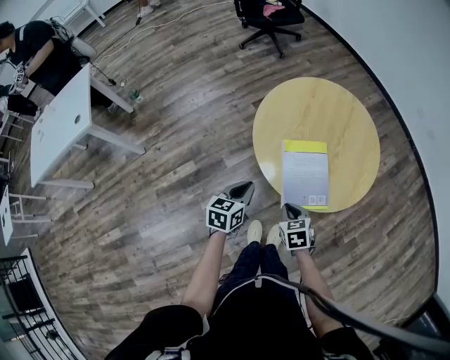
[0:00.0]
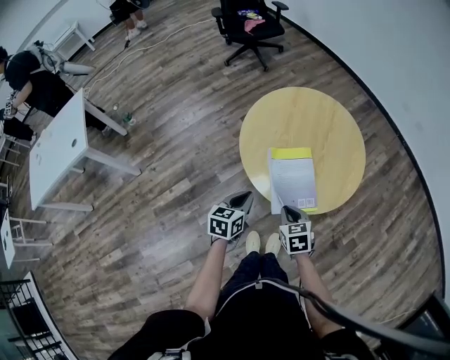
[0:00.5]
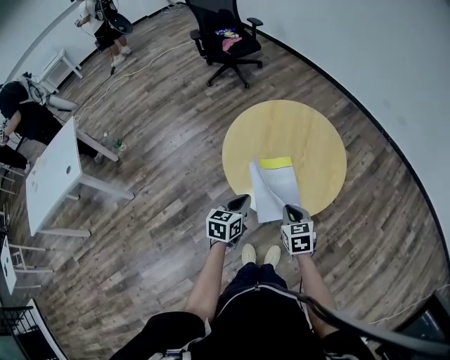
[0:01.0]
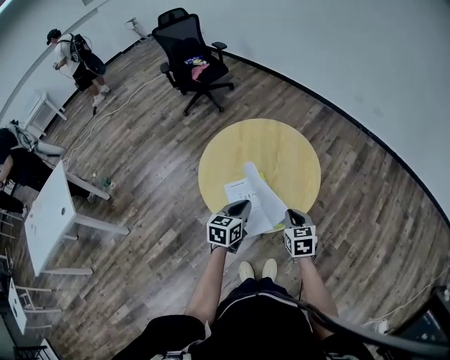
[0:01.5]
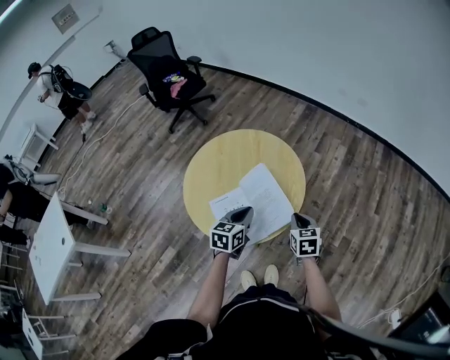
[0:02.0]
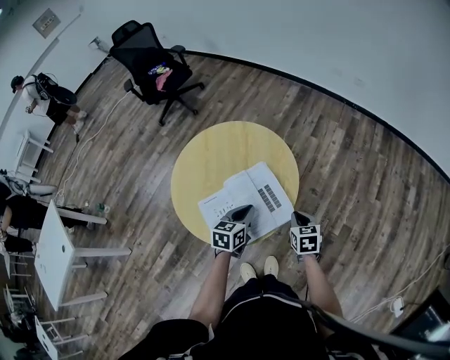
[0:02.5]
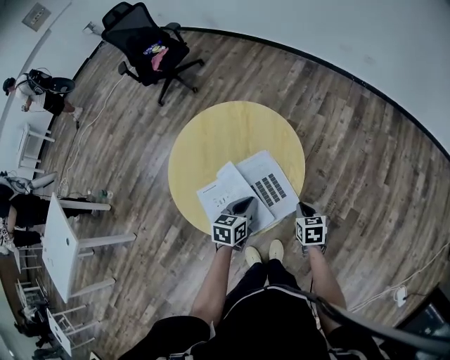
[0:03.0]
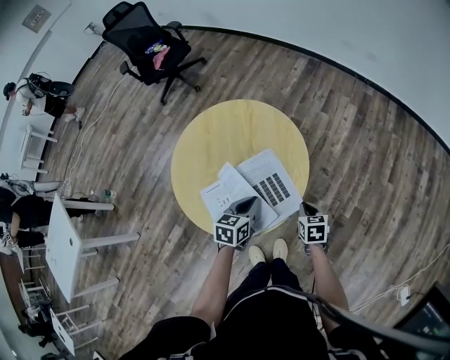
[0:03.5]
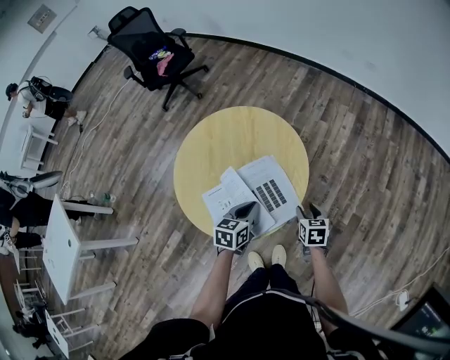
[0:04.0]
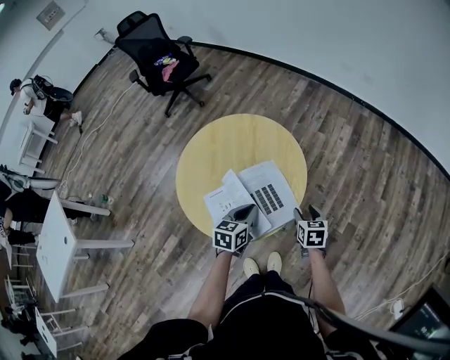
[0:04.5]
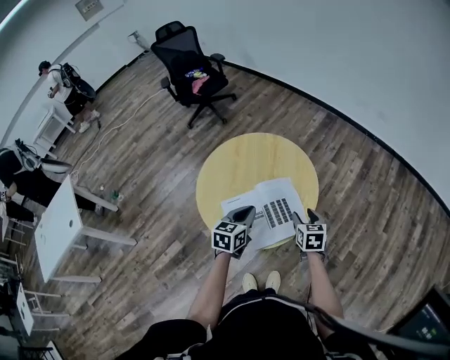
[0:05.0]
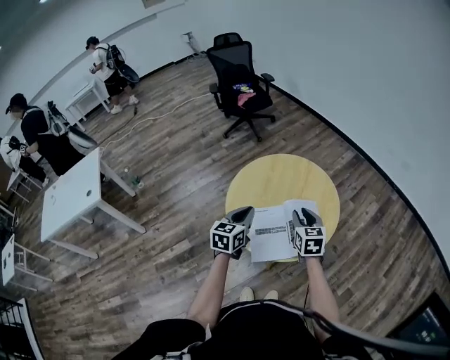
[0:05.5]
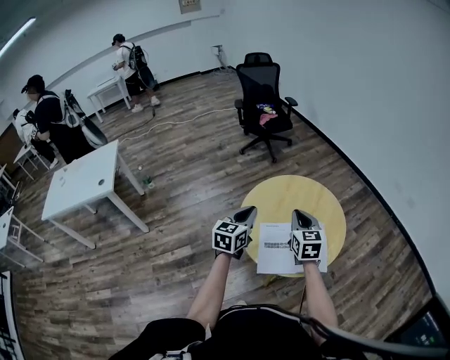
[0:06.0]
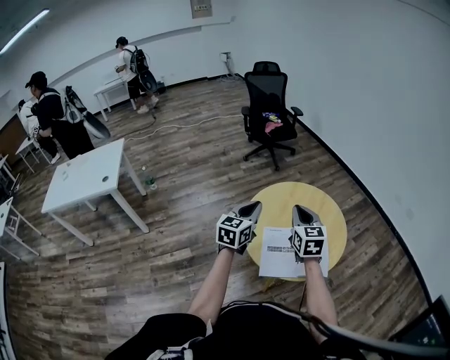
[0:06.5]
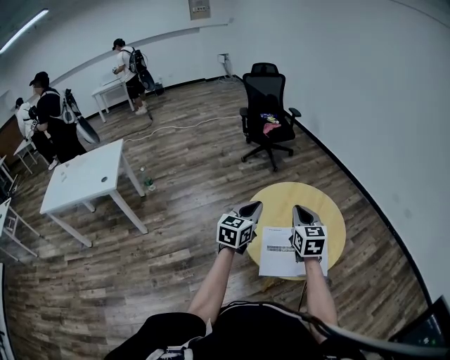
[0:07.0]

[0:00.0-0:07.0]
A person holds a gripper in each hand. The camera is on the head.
0:00.0 to 0:02.0: The right gripper ends up about 30 cm from where it was, and swivels approximately 40 degrees, while the left gripper moves about 25 cm, and swivels approximately 30 degrees.
0:02.0 to 0:03.5: The right gripper goes roughly 10 cm downward, while the left gripper shifts approximately 10 cm downward.
0:03.5 to 0:05.0: The grippers both shift upward and to the left by approximately 10 cm. The right gripper opens its fingers.
0:05.0 to 0:07.0: The left gripper heads to the left and upward, covering some 25 cm, and rotates some 30 degrees. Meanwhile the right gripper heads upward and to the left, covering some 35 cm, changes its angle by about 40 degrees, and closes its fingers.

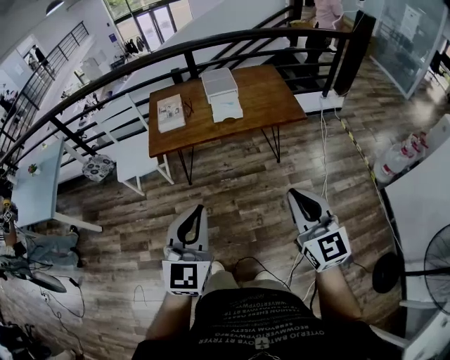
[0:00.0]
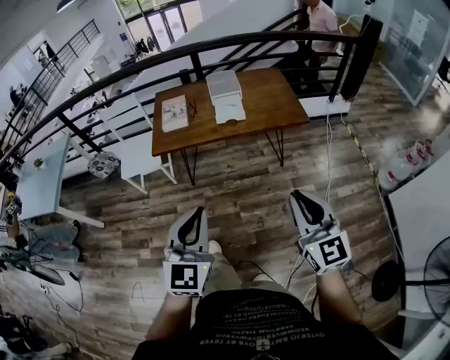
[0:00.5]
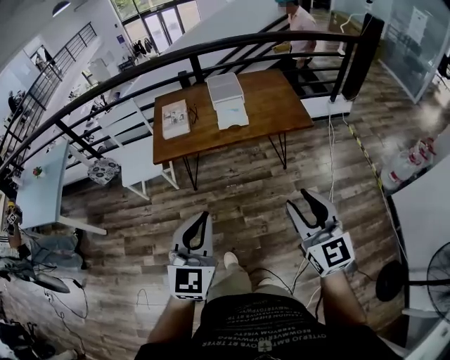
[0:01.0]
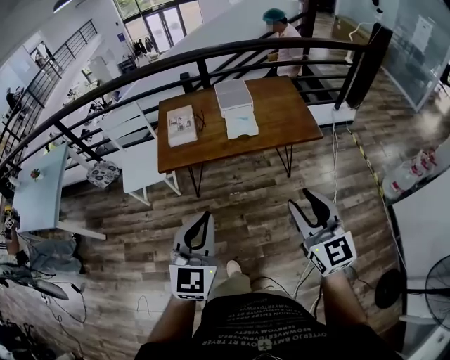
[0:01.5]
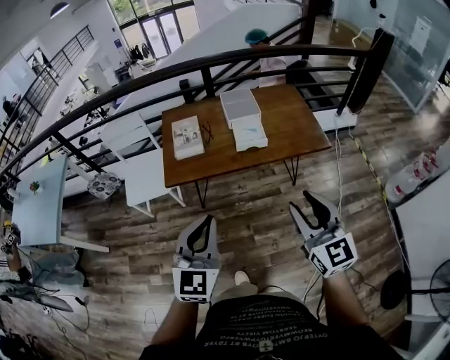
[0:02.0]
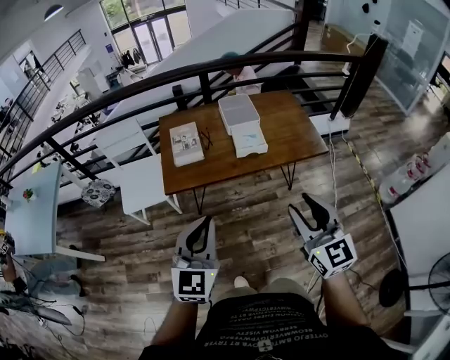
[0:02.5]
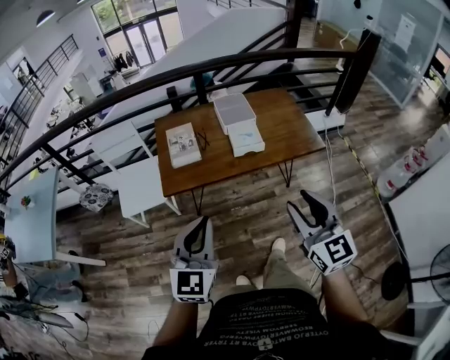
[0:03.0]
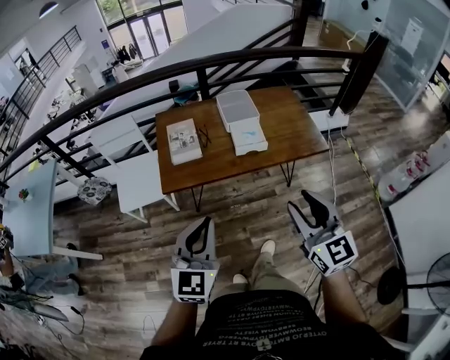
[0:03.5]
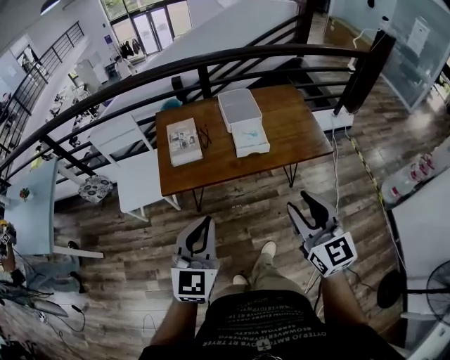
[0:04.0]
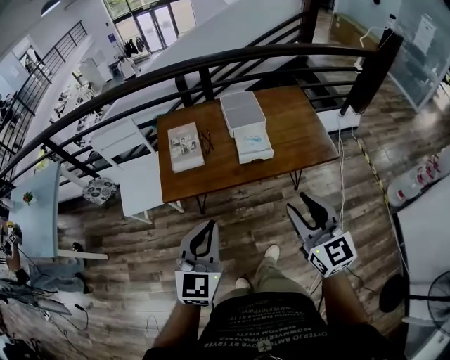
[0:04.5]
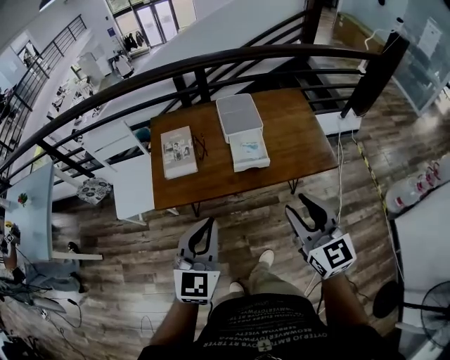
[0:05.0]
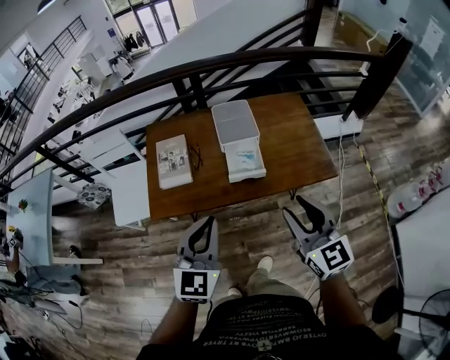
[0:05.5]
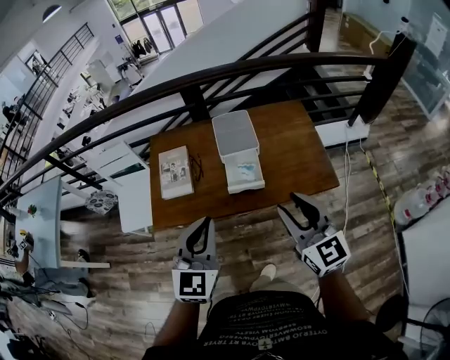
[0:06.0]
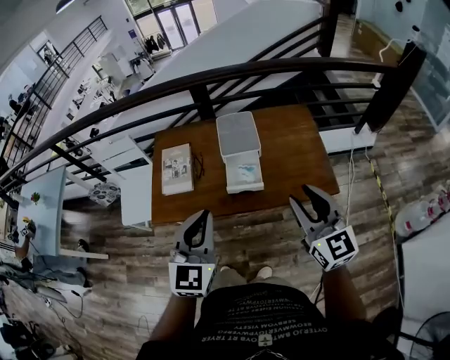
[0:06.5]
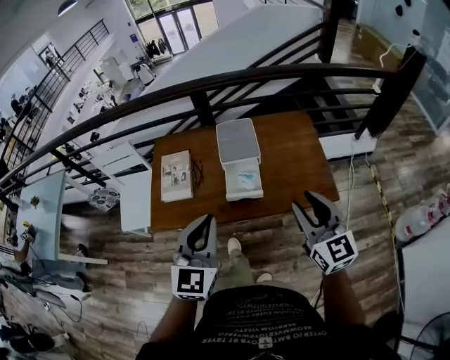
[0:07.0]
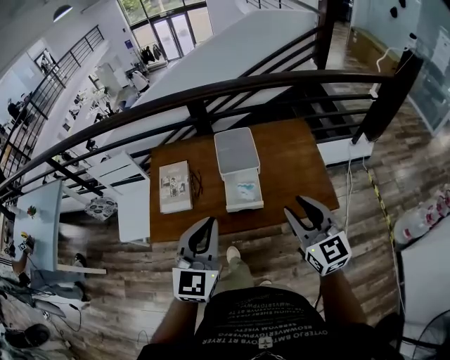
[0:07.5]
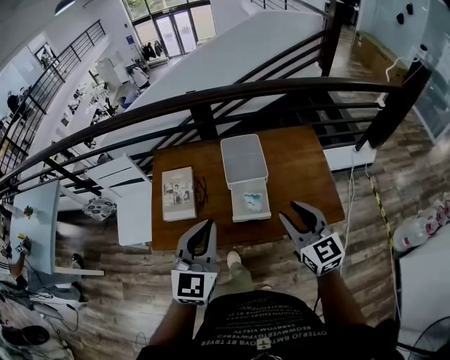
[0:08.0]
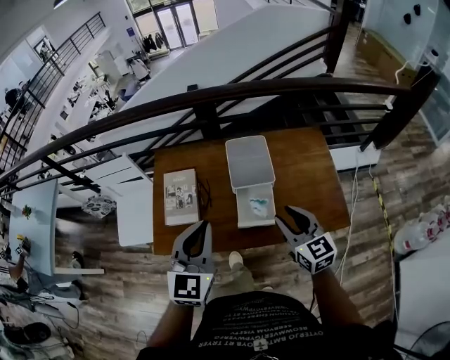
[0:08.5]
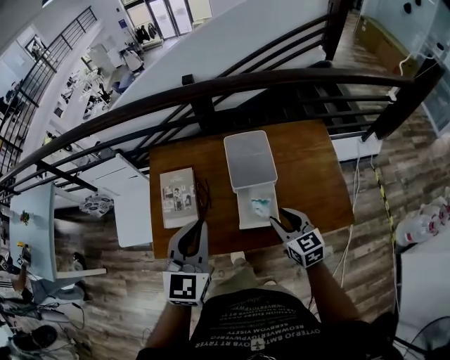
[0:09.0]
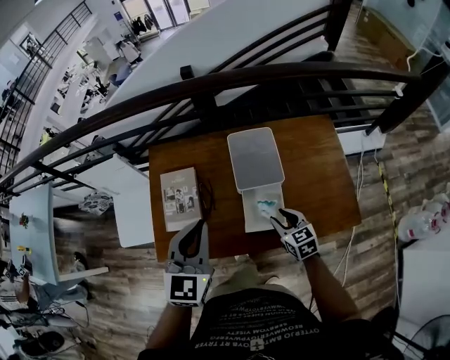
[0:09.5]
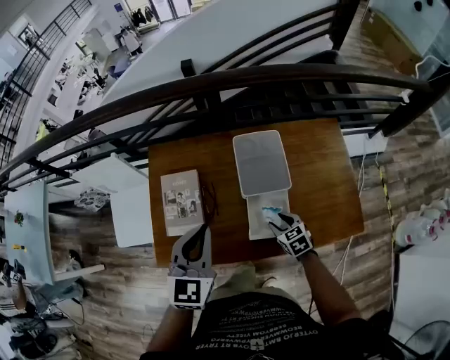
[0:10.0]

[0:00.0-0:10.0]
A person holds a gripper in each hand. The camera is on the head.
0:00.0 to 0:02.0: The grippers both shift forward and to the left by about 20 cm. The right gripper opens up.
0:02.0 to 0:04.0: The two grippers go roughly 5 cm forward.
0:04.0 to 0:06.0: Both grippers move forward and to the right, some 25 cm.
0:06.0 to 0:08.0: Both grippers move forward, approximately 10 cm.
0:08.0 to 0:10.0: The left gripper is displaced forward and downward by approximately 20 cm, while the right gripper heads downward and forward, covering some 35 cm, and tips its fingers downward by some 40 degrees.

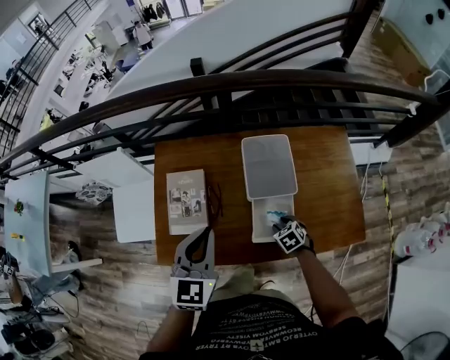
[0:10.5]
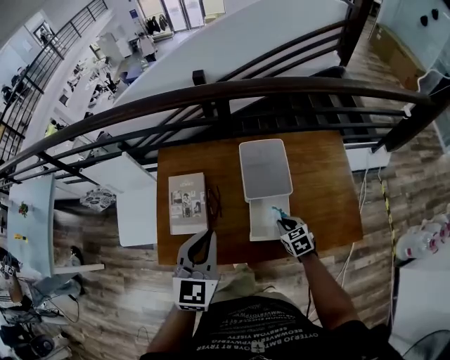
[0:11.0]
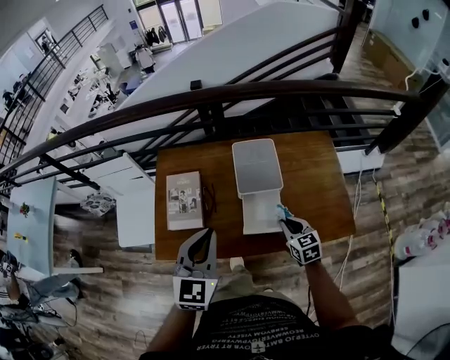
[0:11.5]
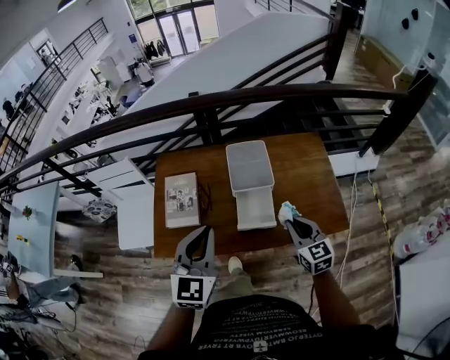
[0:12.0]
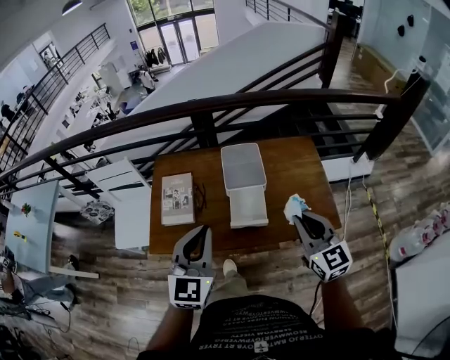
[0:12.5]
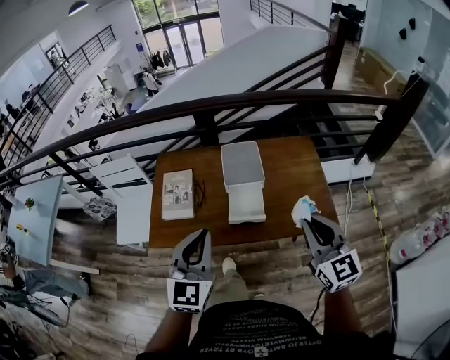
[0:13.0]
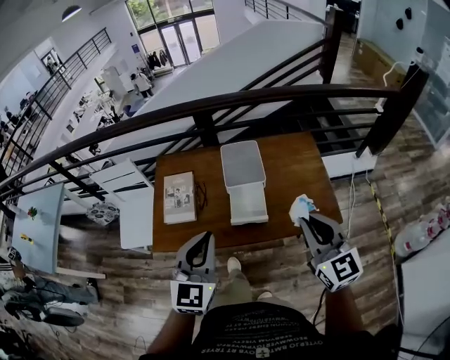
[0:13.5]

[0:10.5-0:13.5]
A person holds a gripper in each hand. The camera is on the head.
0:10.5 to 0:12.0: The left gripper travels backward and upward by approximately 20 cm. The right gripper shifts some 30 cm upward and backward, tilts its fingers approximately 40 degrees upward, and closes its fingers.
0:12.0 to 0:13.5: The right gripper goes about 20 cm upward and backward, while the left gripper travels backward by about 10 cm.

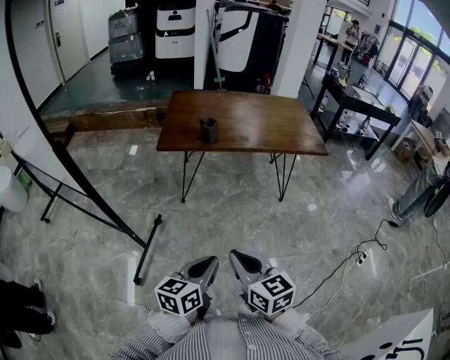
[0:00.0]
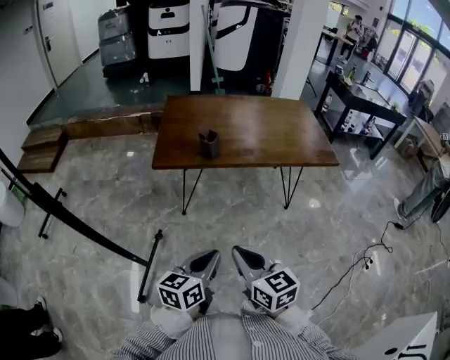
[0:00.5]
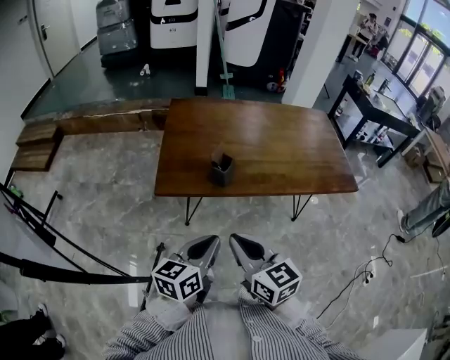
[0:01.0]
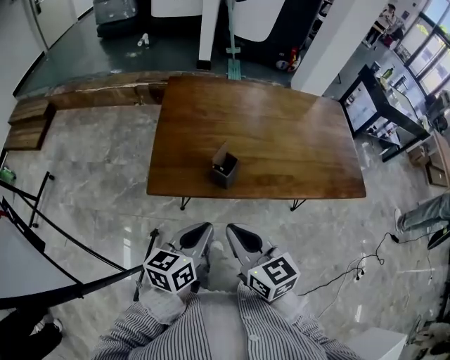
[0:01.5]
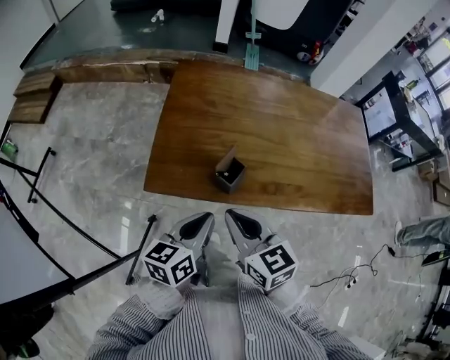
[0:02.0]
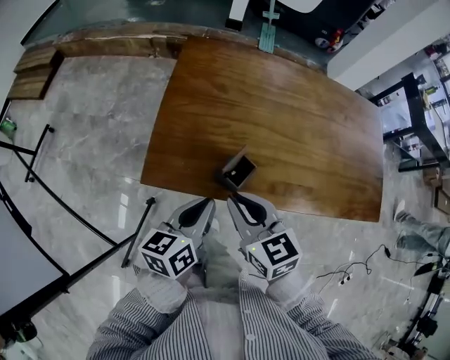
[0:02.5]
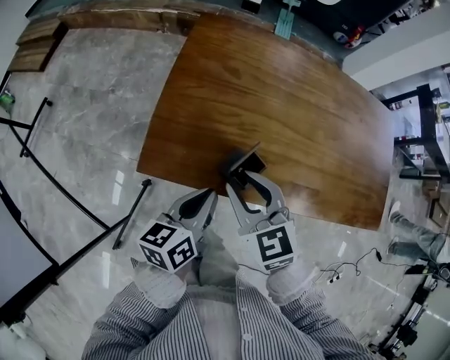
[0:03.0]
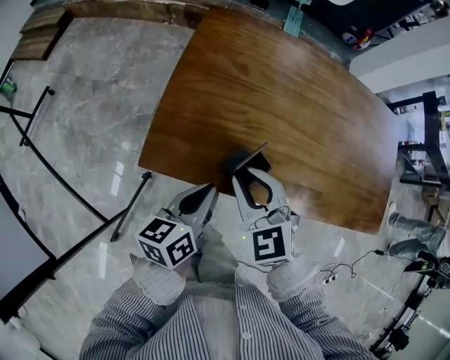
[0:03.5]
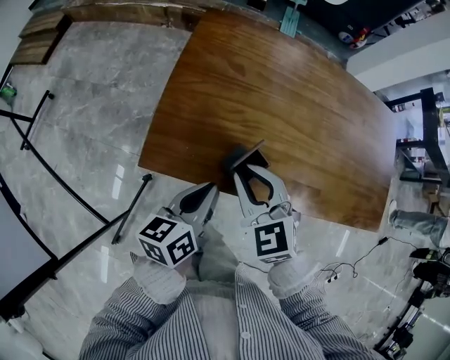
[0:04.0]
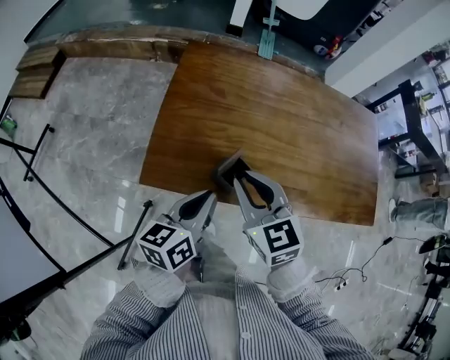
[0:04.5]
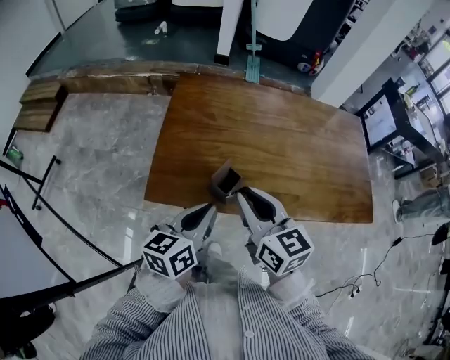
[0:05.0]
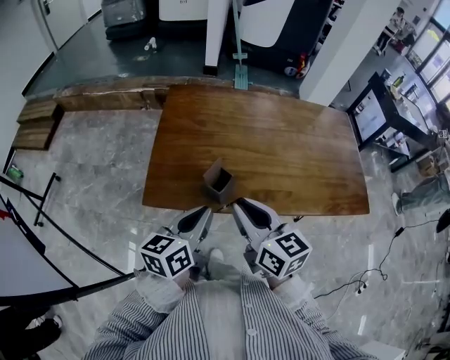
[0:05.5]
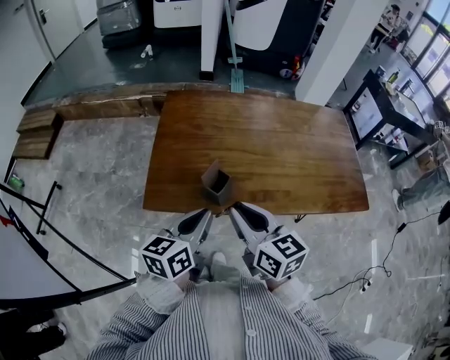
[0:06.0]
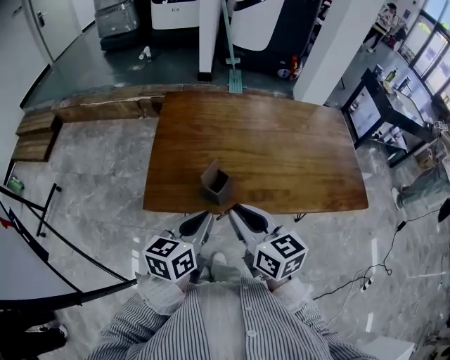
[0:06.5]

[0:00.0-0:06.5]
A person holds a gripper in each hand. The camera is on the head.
0:00.0 to 0:02.0: Both grippers are carried forward, some 50 cm.
0:02.0 to 0:04.5: The left gripper moves forward, some 5 cm, while the right gripper shifts about 10 cm forward.
0:04.5 to 0:06.5: The left gripper shifts roughly 5 cm backward. Meanwhile the right gripper moves backward, roughly 10 cm, and rotates some 30 degrees.
